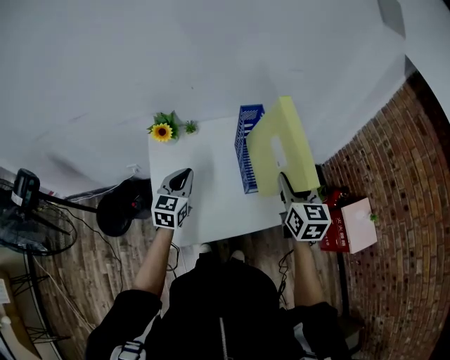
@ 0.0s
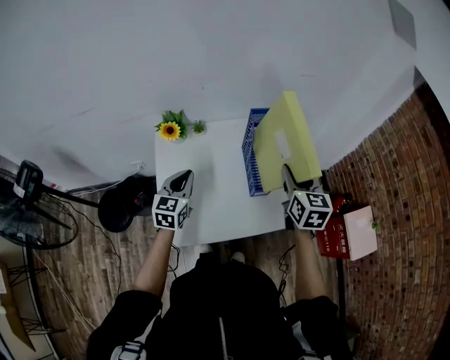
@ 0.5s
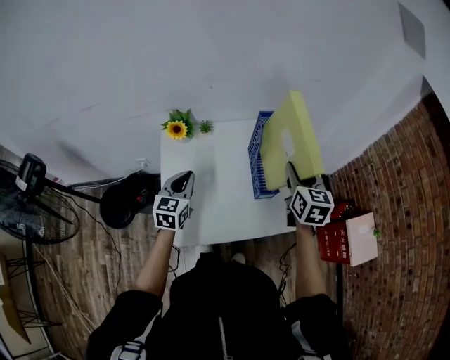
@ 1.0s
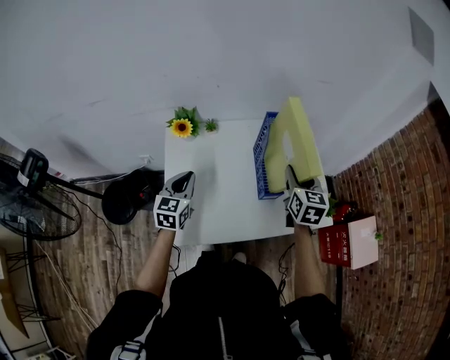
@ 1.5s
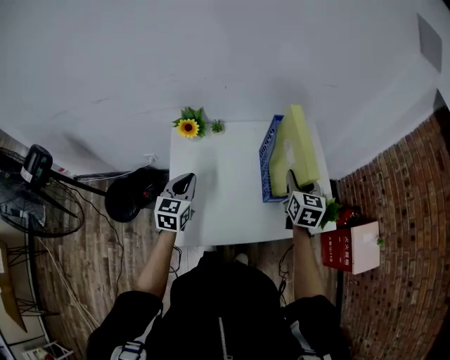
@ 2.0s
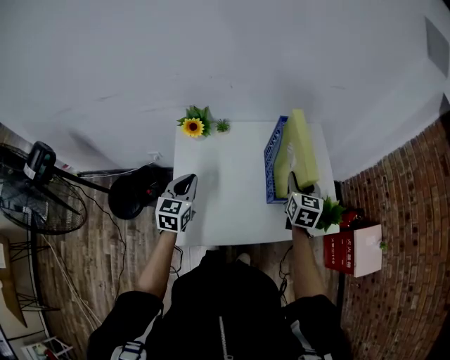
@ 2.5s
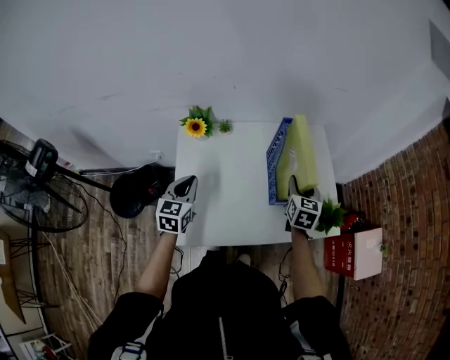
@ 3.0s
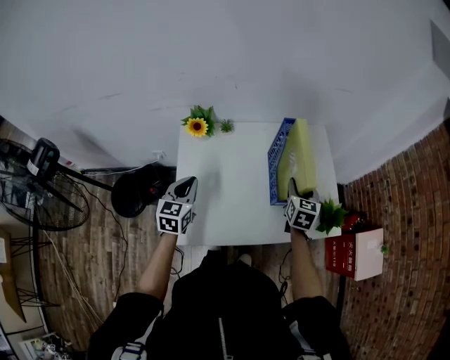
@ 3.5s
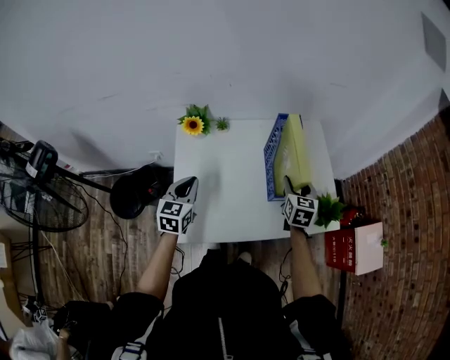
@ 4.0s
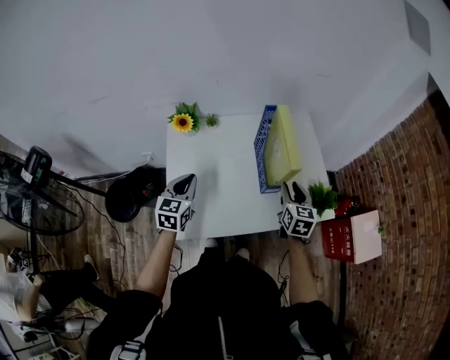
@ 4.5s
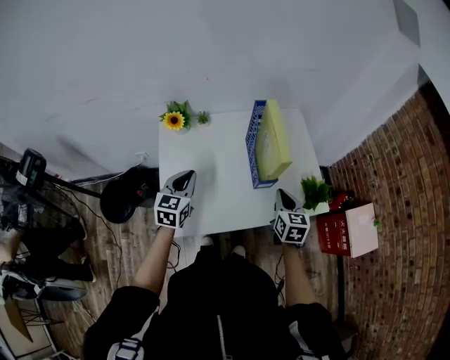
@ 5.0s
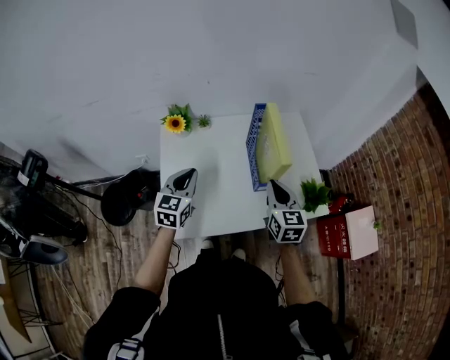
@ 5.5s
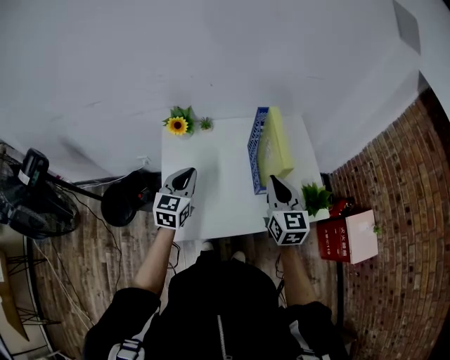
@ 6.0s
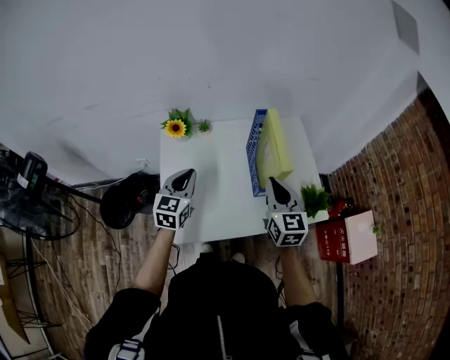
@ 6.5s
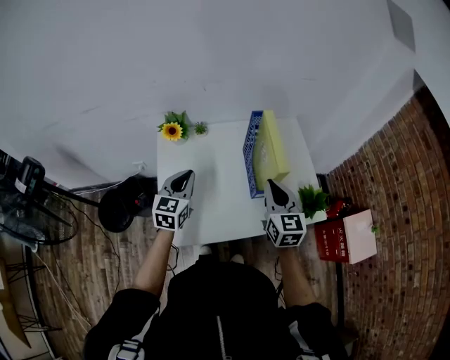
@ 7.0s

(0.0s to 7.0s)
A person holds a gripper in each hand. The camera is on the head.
0.0s - 2.0s: The left gripper is displaced to the left by about 5 cm; the right gripper goes roughly 10 cm forward and downward.
2.0s - 3.5s: The right gripper goes about 5 cm downward.
3.5s - 5.0s: The left gripper travels to the right by about 5 cm; the right gripper shifts roughly 10 cm backward, and closes up.
5.0s - 7.0s: The right gripper moves upward and to the left, roughly 10 cm.

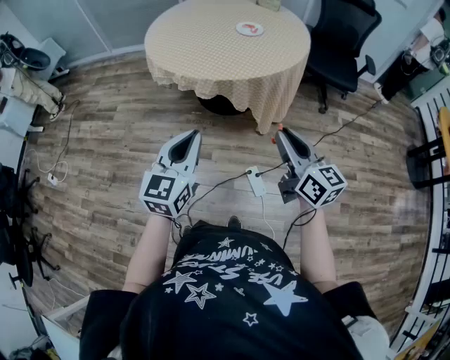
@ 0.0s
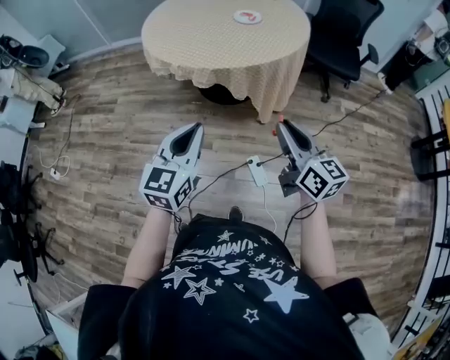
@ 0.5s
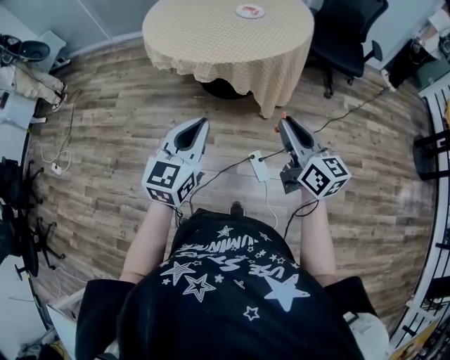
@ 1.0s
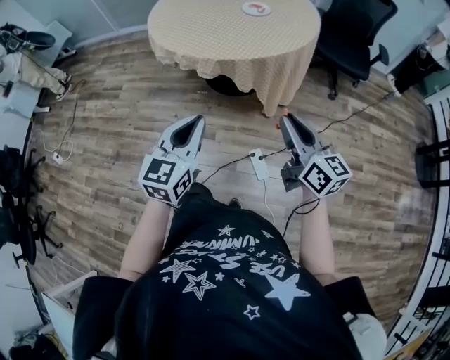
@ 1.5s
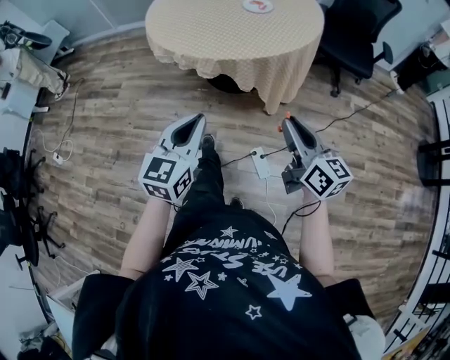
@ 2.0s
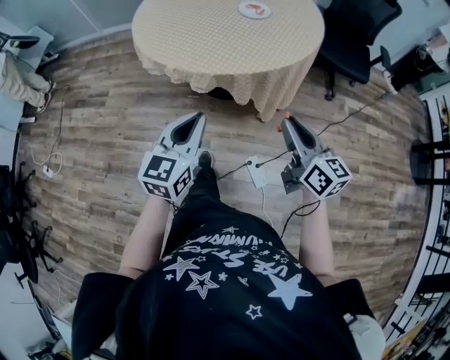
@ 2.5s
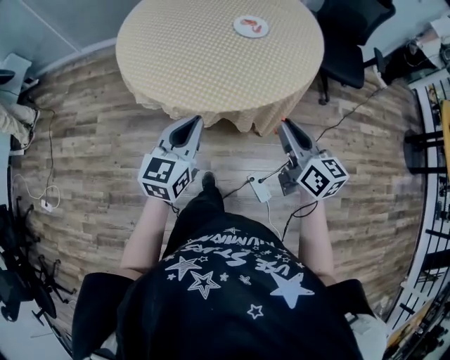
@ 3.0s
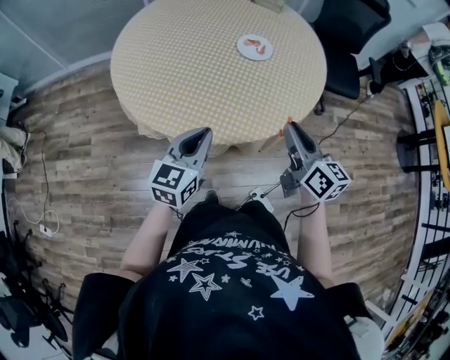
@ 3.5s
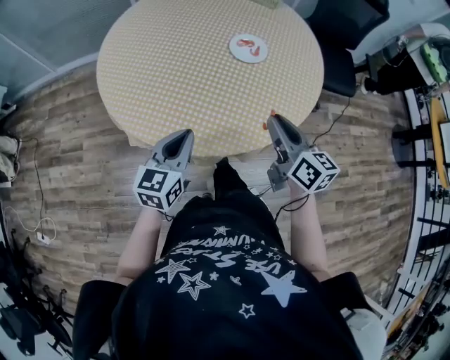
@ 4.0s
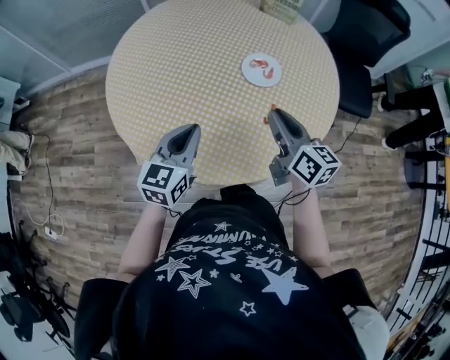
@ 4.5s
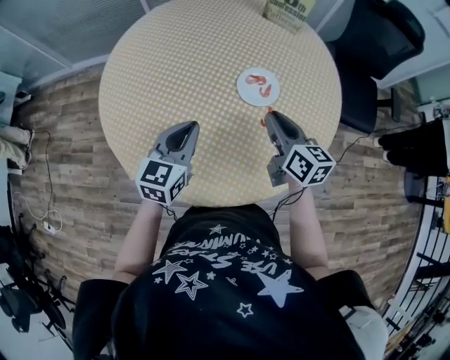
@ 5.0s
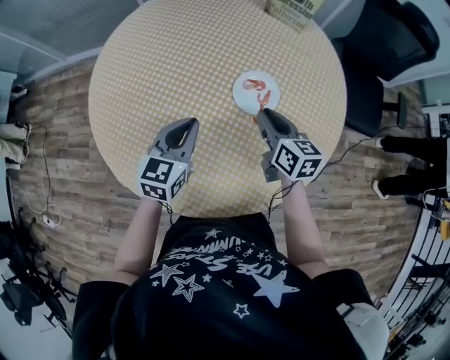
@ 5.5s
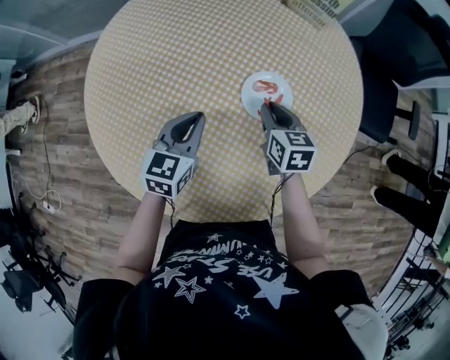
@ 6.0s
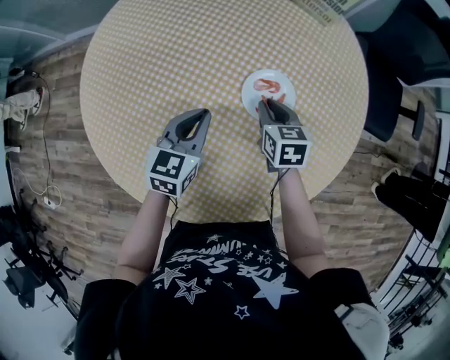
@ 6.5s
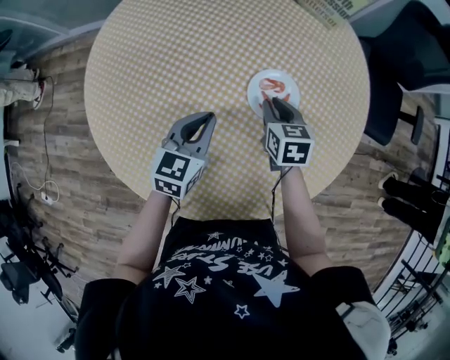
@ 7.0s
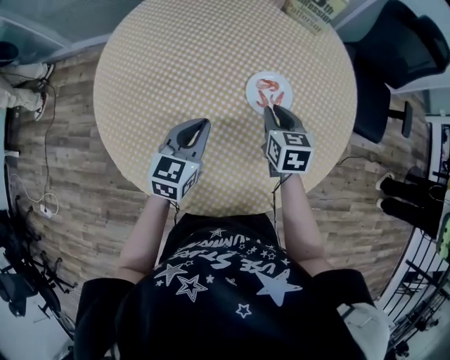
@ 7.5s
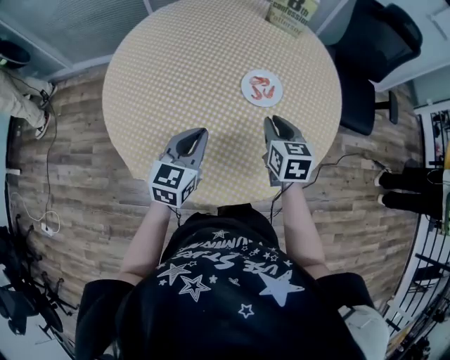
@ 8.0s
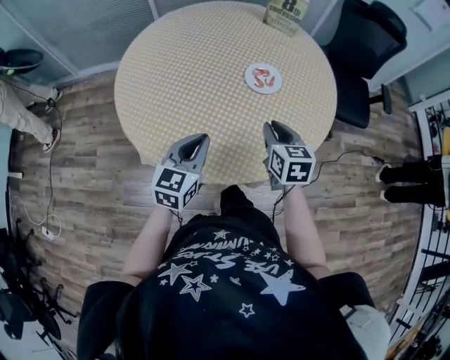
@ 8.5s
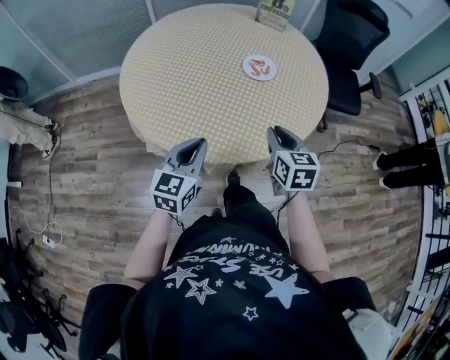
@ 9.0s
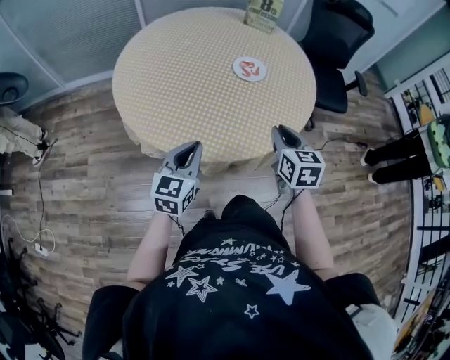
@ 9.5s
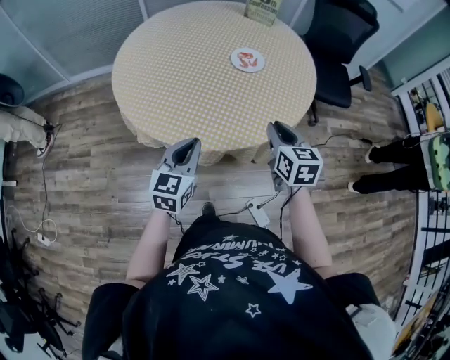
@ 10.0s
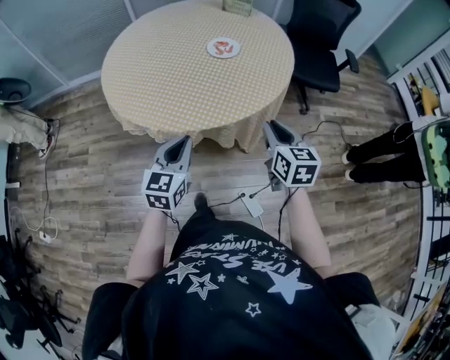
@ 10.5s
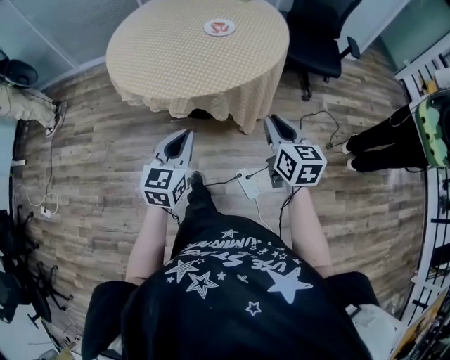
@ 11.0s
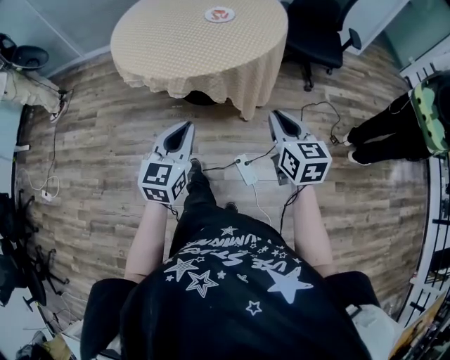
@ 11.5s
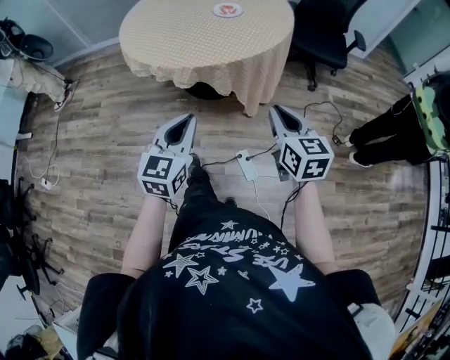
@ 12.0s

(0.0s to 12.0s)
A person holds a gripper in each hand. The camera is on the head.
0.0s - 2.0s: The grippers make only small movements.
2.0s - 4.0s: Both grippers are carried forward, about 40 cm.
4.0s - 6.0s: The right gripper travels forward and downward by some 35 cm, and swivels about 30 degrees; the left gripper travels forward by some 30 cm.
6.0s - 8.0s: The grippers both shift backward and upward by approximately 15 cm.
8.0s - 10.0s: The grippers both shift backward by approximately 25 cm.
10.0s - 12.0s: The two grippers go roughly 35 cm backward and to the right.

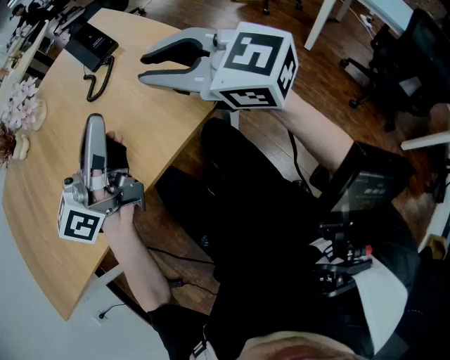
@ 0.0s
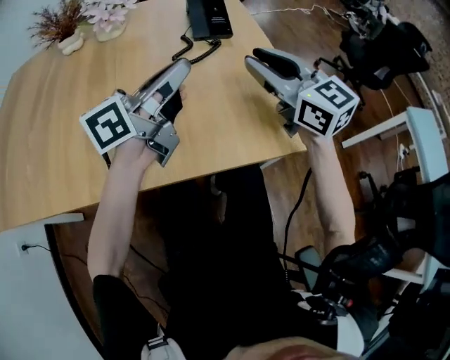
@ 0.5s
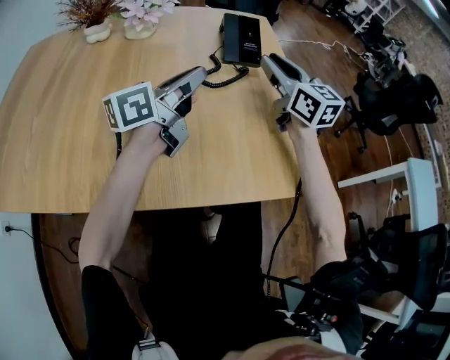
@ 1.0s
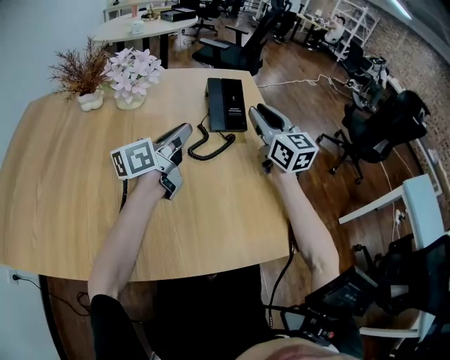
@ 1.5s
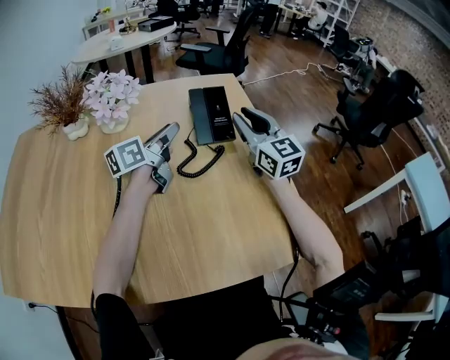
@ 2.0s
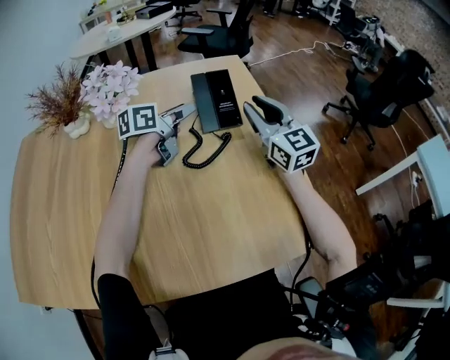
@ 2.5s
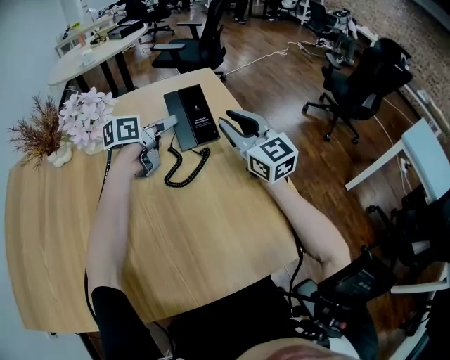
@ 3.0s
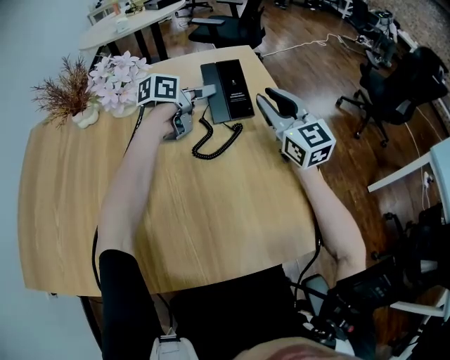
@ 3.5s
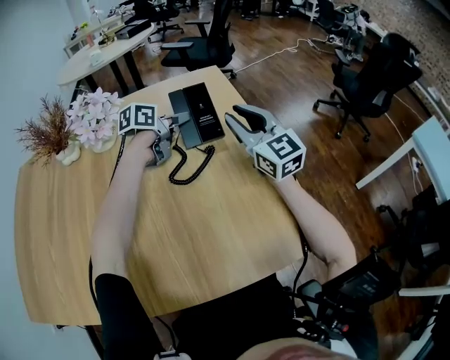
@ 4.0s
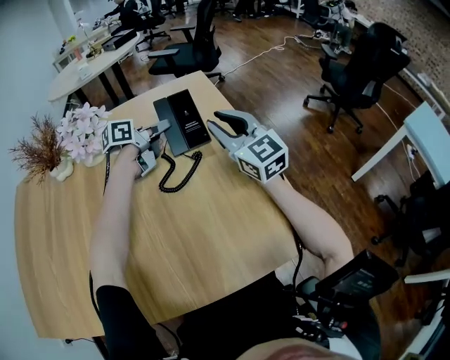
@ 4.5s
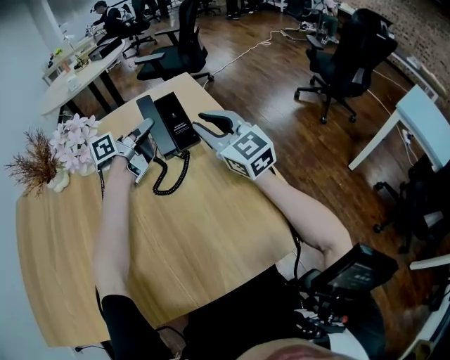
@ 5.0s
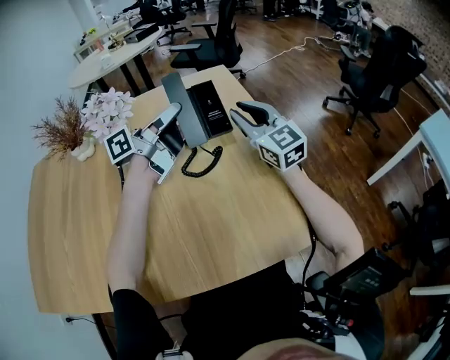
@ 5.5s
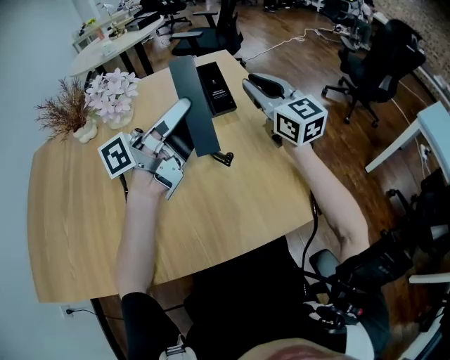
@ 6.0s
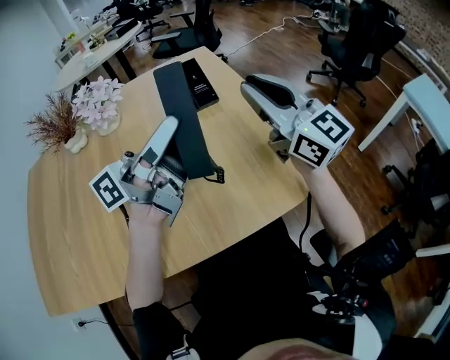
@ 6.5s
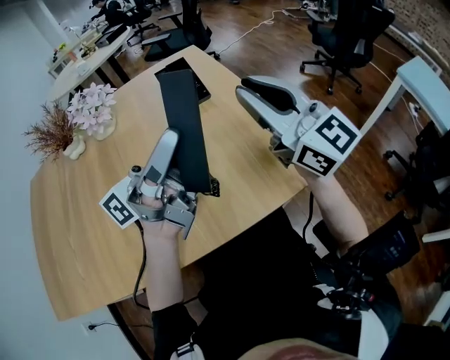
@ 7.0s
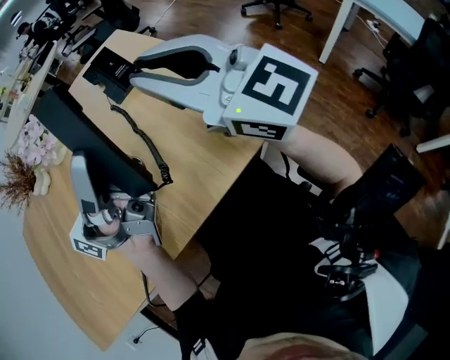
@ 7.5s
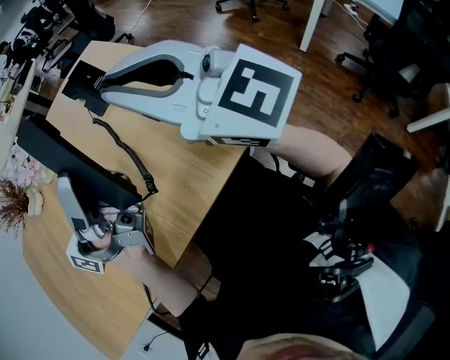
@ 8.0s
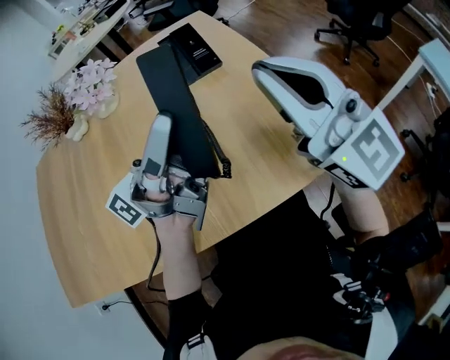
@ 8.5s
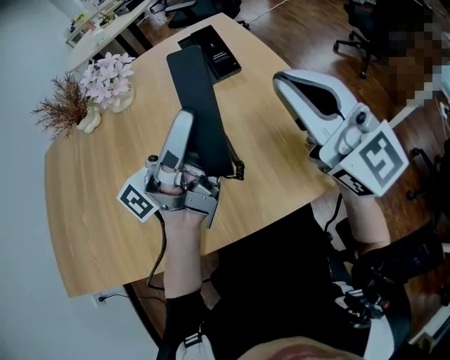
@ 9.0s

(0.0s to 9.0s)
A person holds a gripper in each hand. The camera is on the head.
0.0s - 2.0s: The two grippers go about 35 cm forward. The left gripper changes its angle by approximately 30 degrees, and opens its fingers, while the right gripper changes its angle by about 20 degrees.
2.0s - 4.5s: The left gripper moves forward and to the right, roughly 10 cm, changes its angle by some 30 degrees, and opens, then closes once more.
4.5s - 7.0s: The right gripper moves backward and upward, approximately 20 cm. The left gripper travels backward and upward by some 40 cm, and tips its fingers upward by some 60 degrees.
7.0s - 9.0s: The grippers move only a little.
